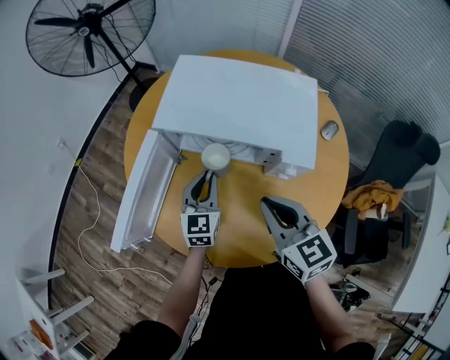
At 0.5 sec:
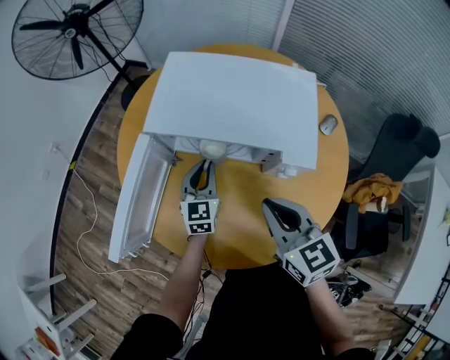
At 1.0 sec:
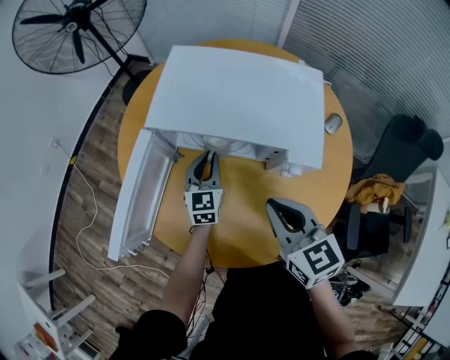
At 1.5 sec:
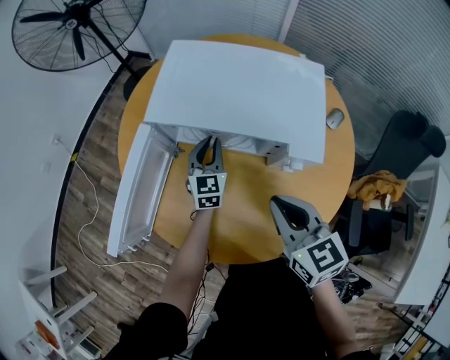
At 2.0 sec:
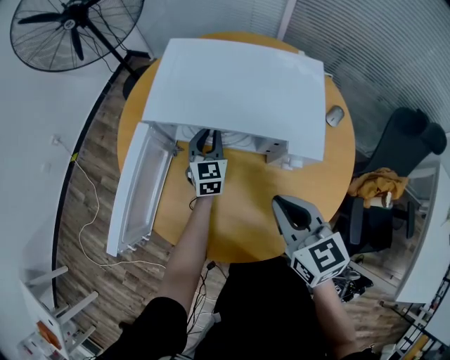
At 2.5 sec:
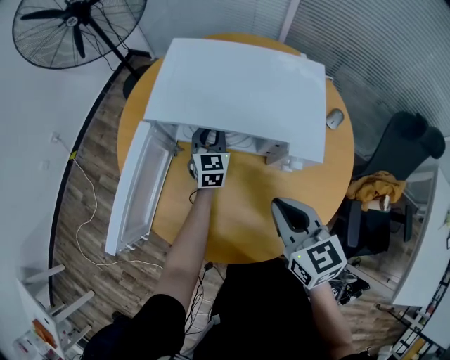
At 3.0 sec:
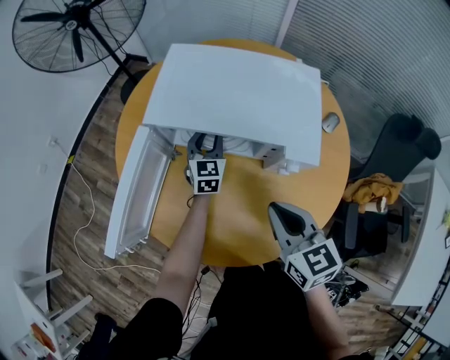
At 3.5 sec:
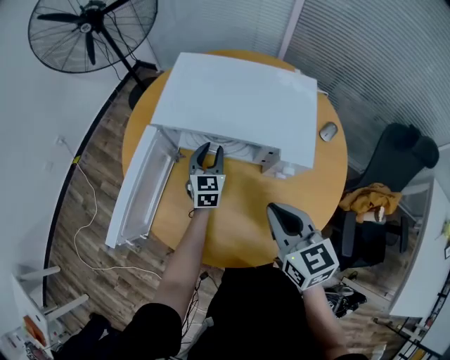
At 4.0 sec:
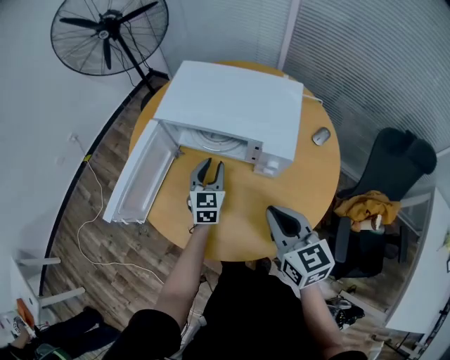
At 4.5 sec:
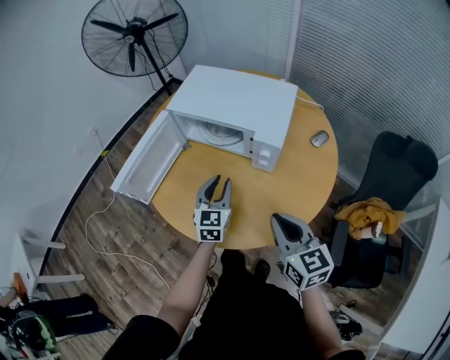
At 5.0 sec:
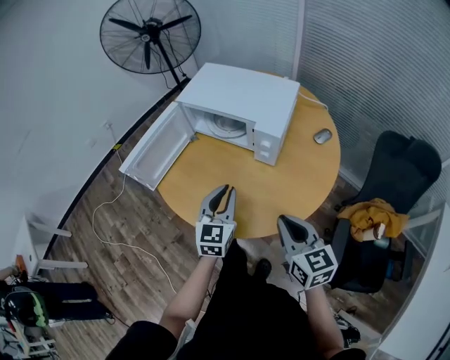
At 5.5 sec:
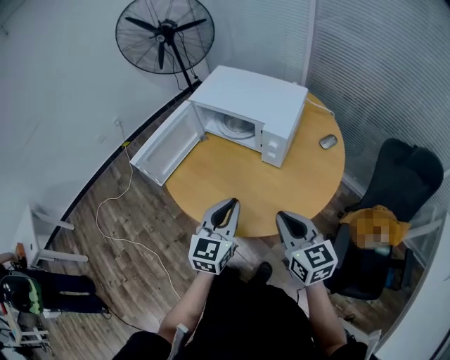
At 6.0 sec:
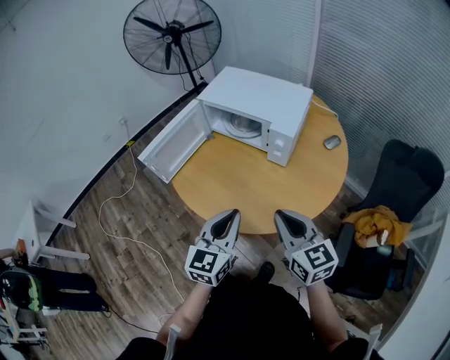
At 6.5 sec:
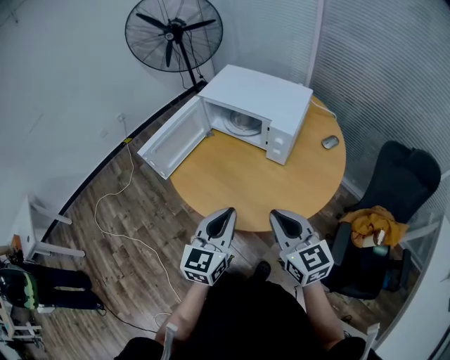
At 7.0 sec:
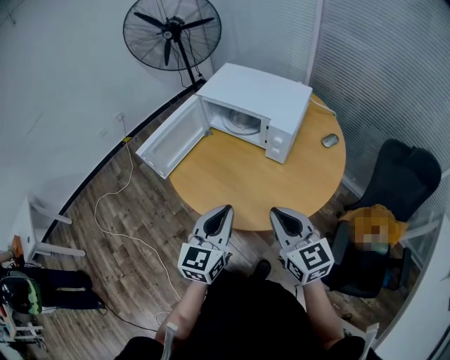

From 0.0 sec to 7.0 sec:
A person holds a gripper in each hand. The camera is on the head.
From 0.0 sec to 2.0 sec: The left gripper heads forward and downward, covering approximately 15 cm.
From 2.0 sec to 3.5 sec: The grippers move only a little.
From 3.5 sec to 5.0 sec: The left gripper shifts approximately 35 cm backward and upward; the right gripper shifts about 25 cm backward and to the right.
From 5.0 sec to 7.0 sec: The left gripper heads backward and upward, covering approximately 15 cm. Meanwhile the right gripper heads to the left, covering roughly 5 cm.

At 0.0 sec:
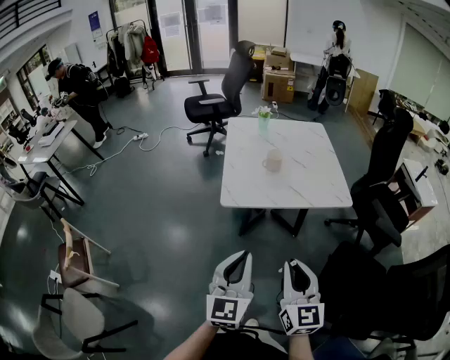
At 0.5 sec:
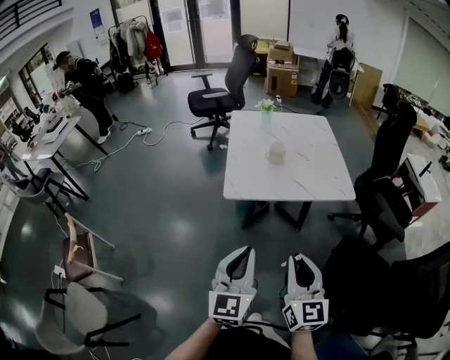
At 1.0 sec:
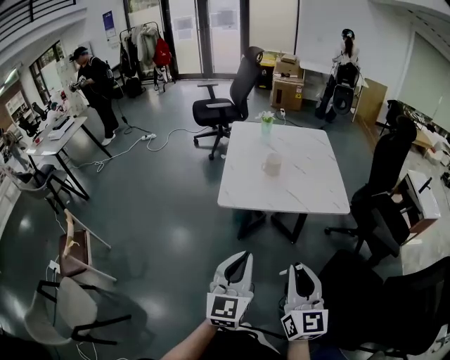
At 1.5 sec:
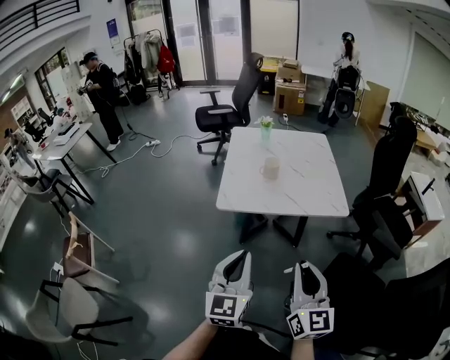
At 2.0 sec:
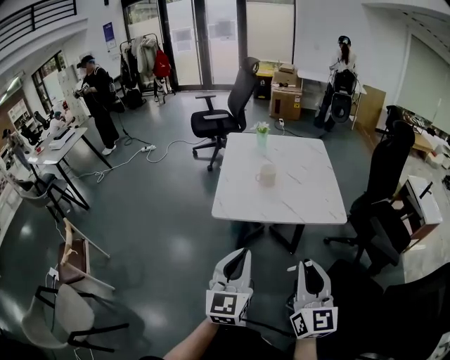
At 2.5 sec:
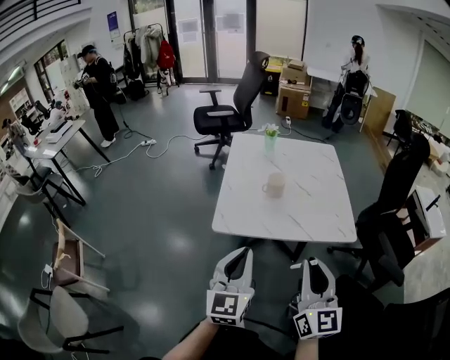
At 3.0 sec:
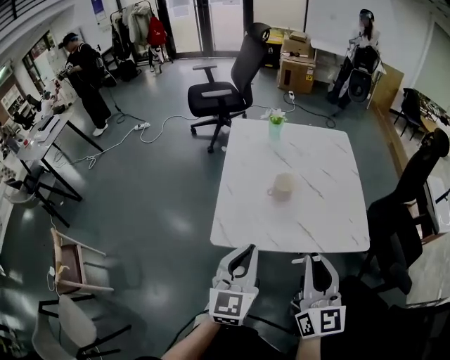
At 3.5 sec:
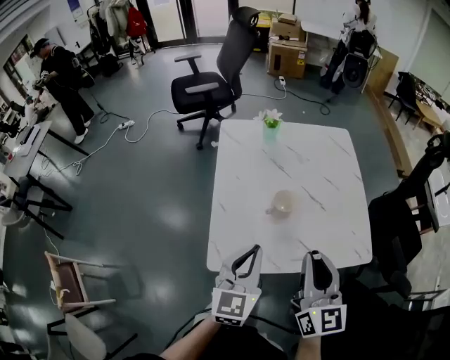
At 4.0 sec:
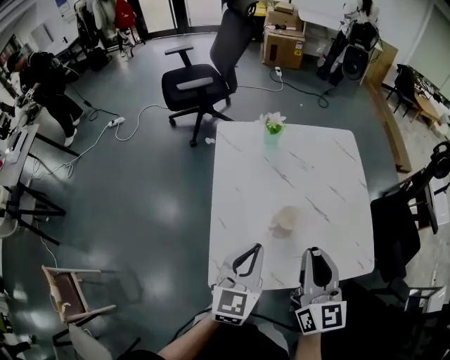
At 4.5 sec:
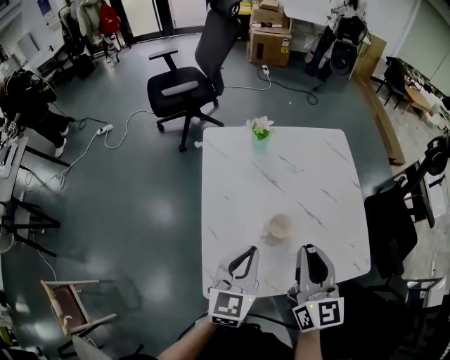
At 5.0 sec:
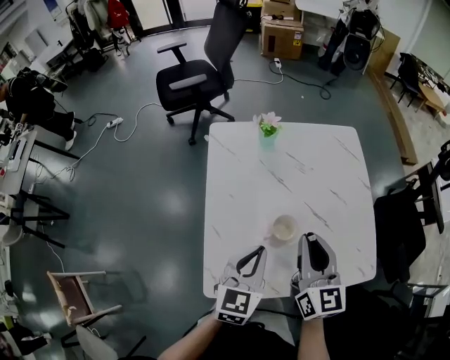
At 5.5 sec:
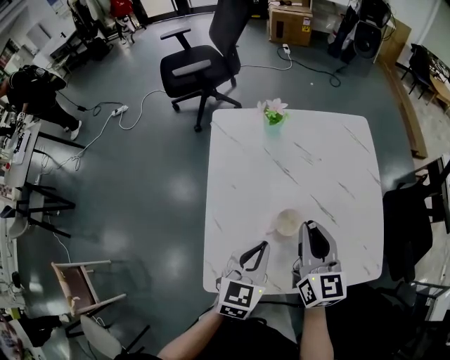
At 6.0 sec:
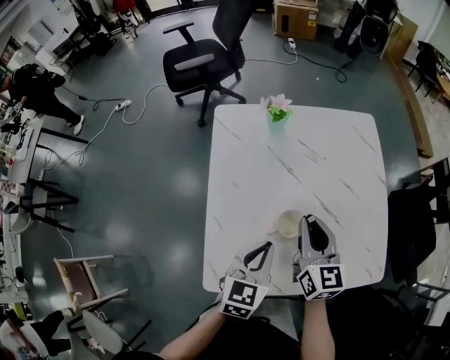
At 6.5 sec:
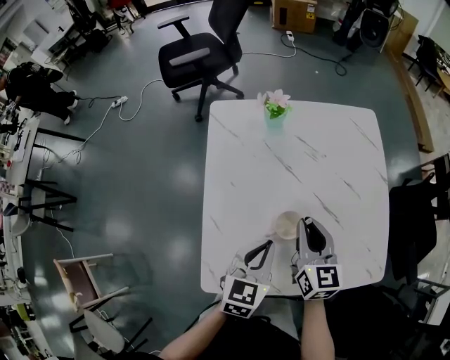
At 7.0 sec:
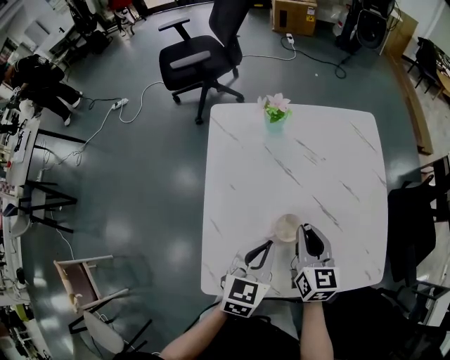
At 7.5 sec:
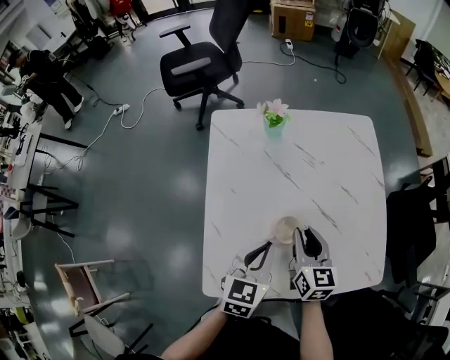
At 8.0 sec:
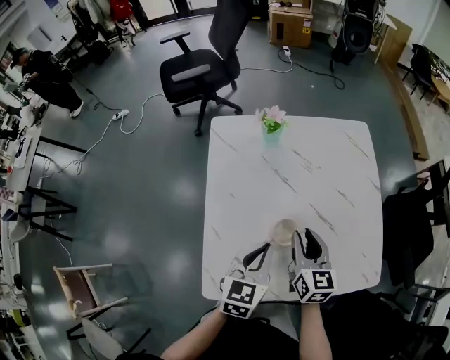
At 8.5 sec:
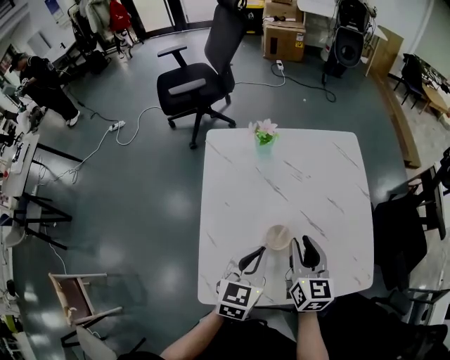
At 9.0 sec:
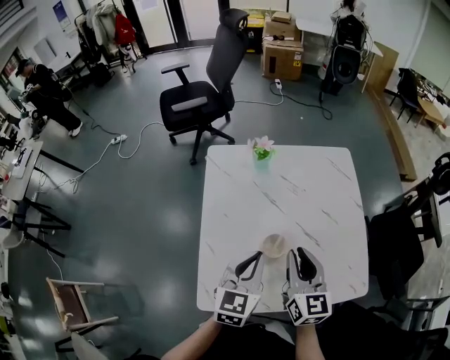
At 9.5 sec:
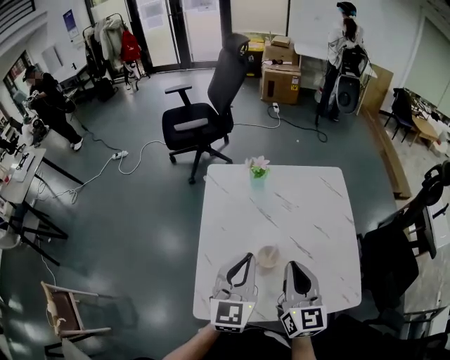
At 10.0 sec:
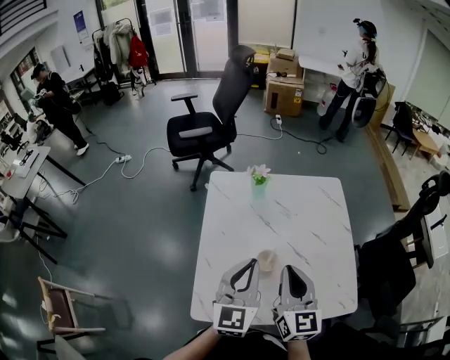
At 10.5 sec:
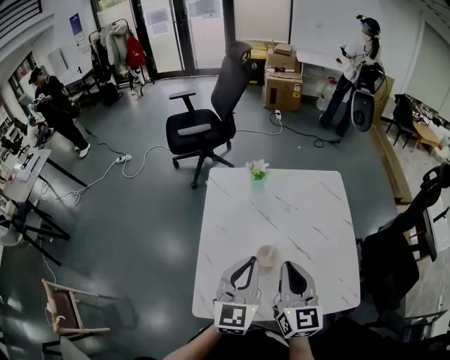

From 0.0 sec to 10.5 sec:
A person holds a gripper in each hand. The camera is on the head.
From 0.0 sec to 2.0 sec: The grippers both shift to the right by some 10 cm.
From 2.0 sec to 4.0 sec: Both grippers are carried forward, some 40 cm. The left gripper turns by approximately 20 degrees.
From 4.0 sec to 6.5 sec: The left gripper travels downward, forward and to the right by about 15 cm; the right gripper goes about 20 cm downward and forward.
From 6.5 sec to 8.5 sec: The grippers move only a little.
From 8.5 sec to 10.5 sec: The right gripper moves upward and backward, some 10 cm, and closes its fingers. The left gripper goes some 10 cm upward, and changes its angle by roughly 30 degrees.

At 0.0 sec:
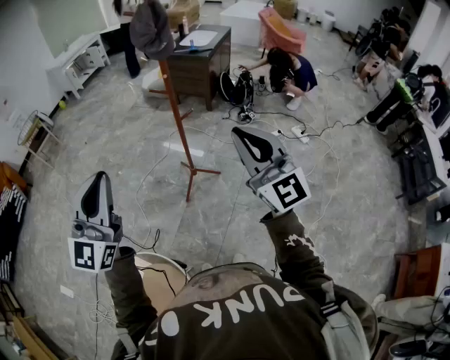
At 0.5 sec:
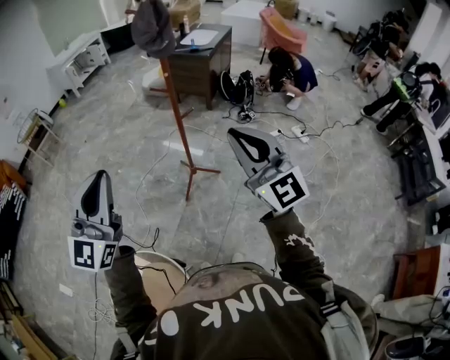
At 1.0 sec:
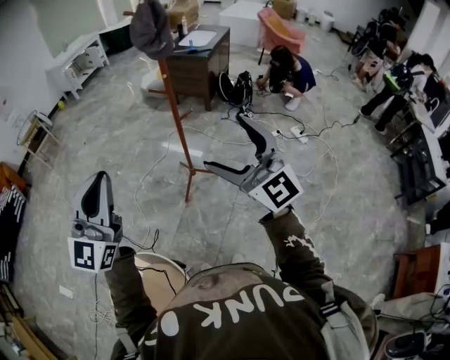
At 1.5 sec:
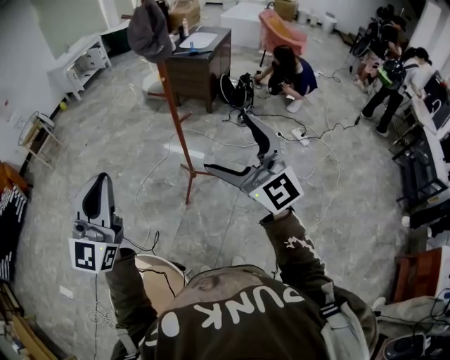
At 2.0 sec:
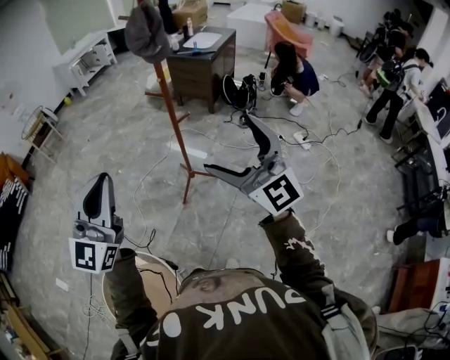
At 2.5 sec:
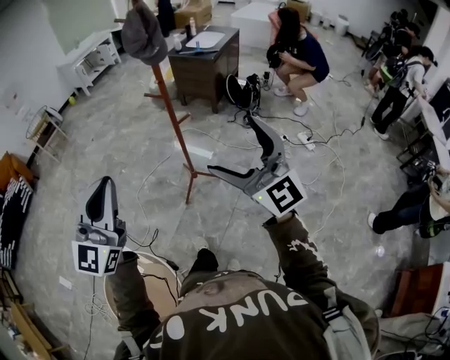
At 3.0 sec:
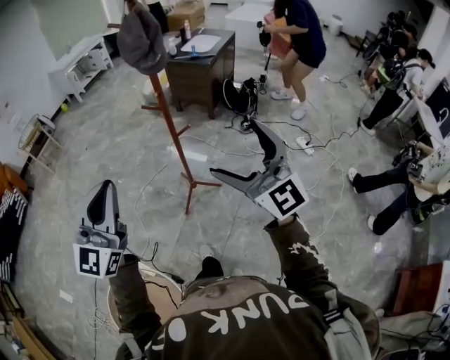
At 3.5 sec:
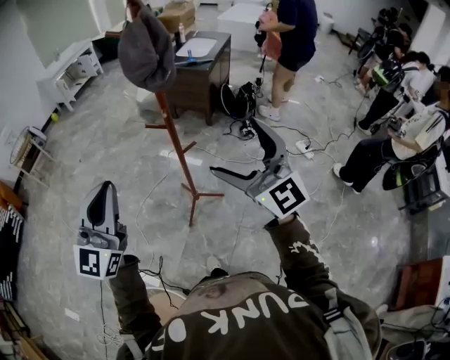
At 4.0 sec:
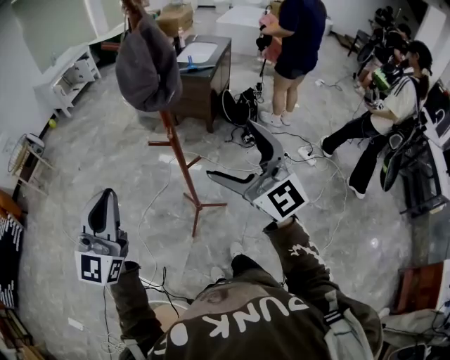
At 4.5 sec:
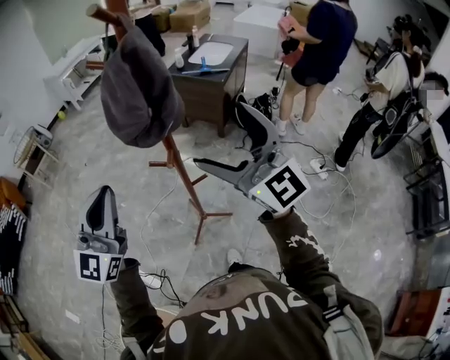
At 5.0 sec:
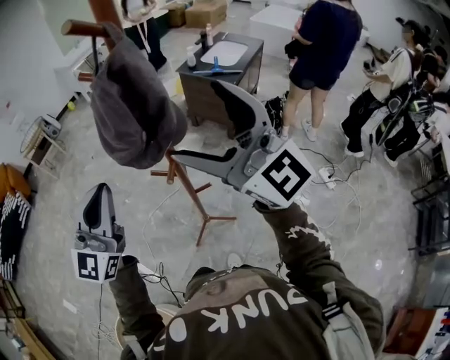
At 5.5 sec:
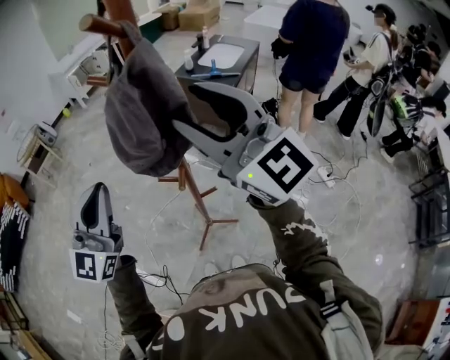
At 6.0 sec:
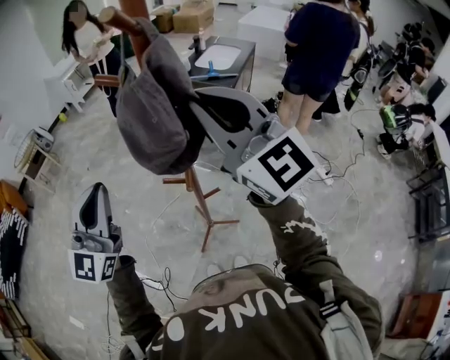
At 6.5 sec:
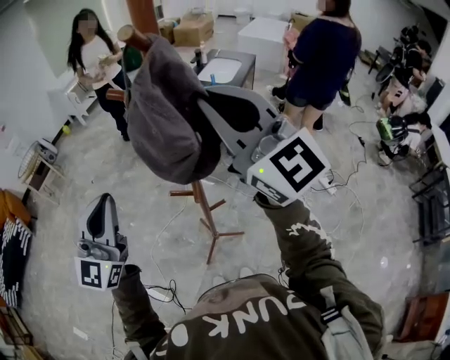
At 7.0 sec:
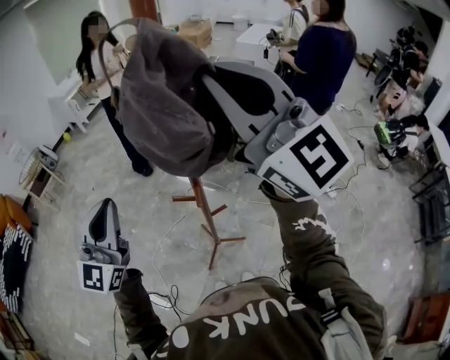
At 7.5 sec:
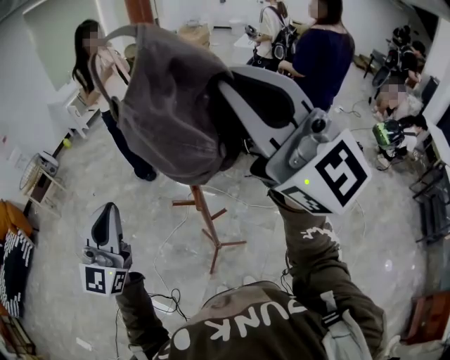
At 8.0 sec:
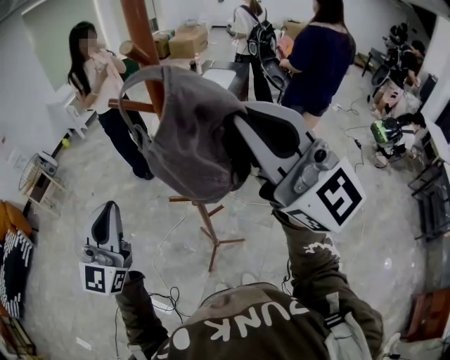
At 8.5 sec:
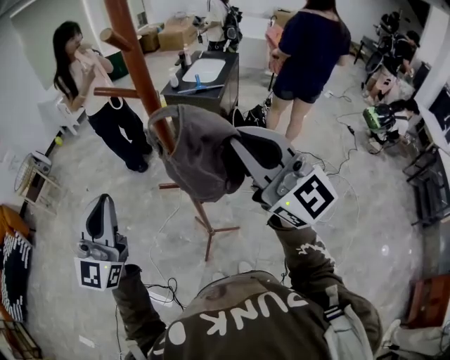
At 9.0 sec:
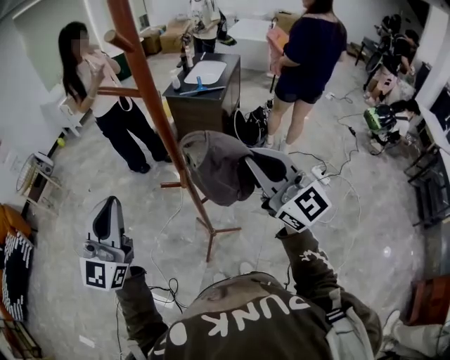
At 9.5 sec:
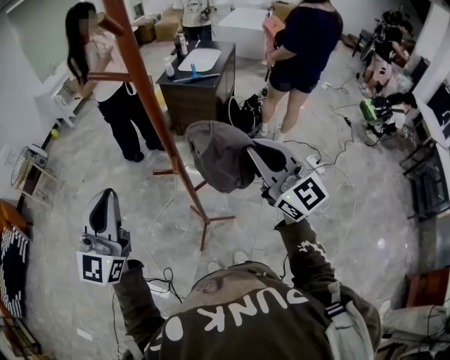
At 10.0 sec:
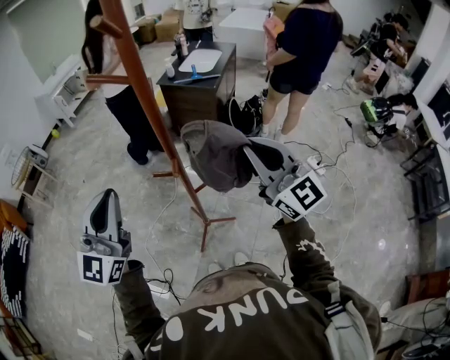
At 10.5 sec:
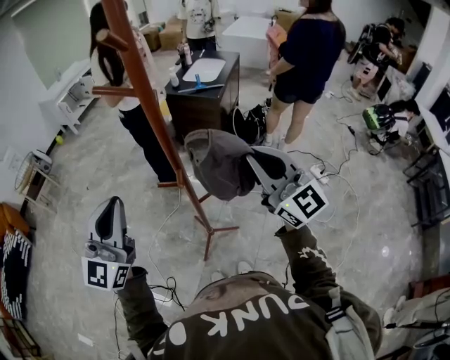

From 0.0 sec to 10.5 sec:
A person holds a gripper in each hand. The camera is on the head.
From 0.0 sec to 2.0 sec: The right gripper opens. The left gripper heads to the right, covering approximately 5 cm.
From 2.0 sec to 4.0 sec: Both grippers travel together forward, some 30 cm.
From 4.0 sec to 6.5 sec: The left gripper travels forward by approximately 15 cm; the right gripper travels forward and upward by approximately 25 cm, and closes.
From 6.5 sec to 8.5 sec: The right gripper heads backward, downward and to the right, covering some 15 cm.
From 8.5 sec to 10.5 sec: The right gripper goes about 10 cm downward.
